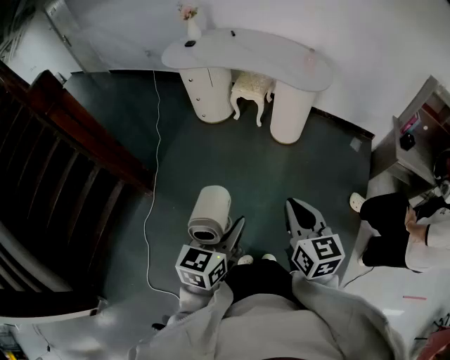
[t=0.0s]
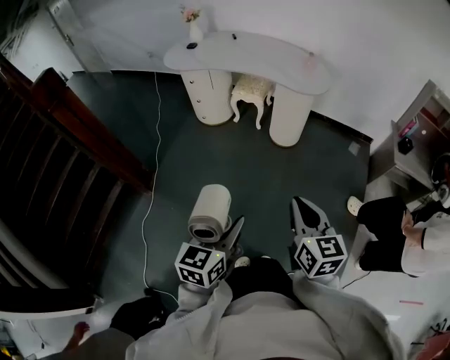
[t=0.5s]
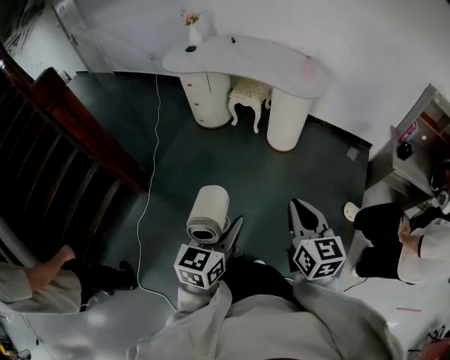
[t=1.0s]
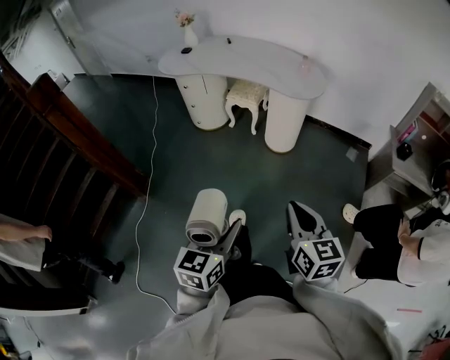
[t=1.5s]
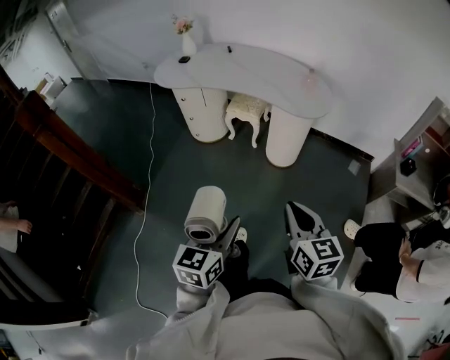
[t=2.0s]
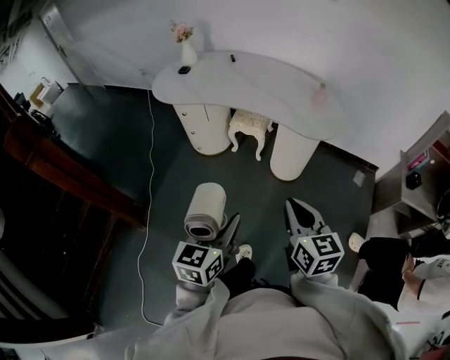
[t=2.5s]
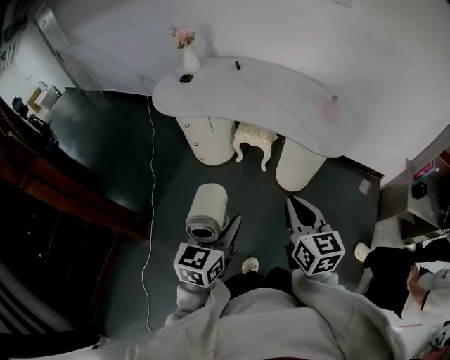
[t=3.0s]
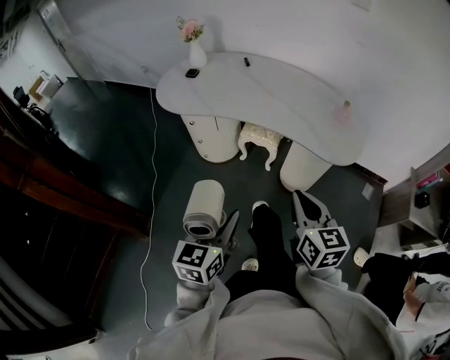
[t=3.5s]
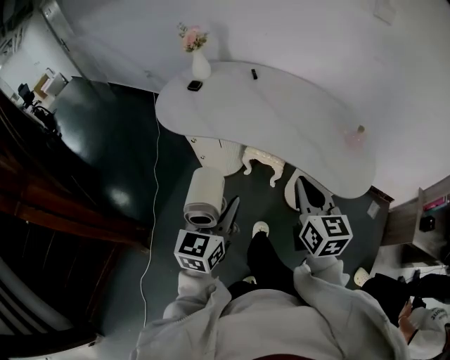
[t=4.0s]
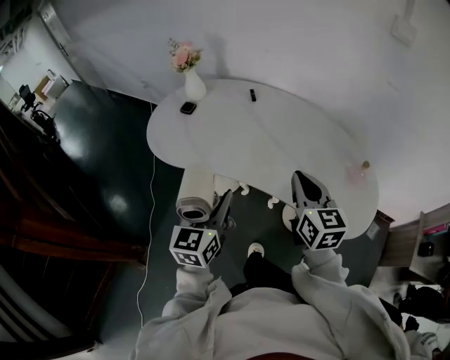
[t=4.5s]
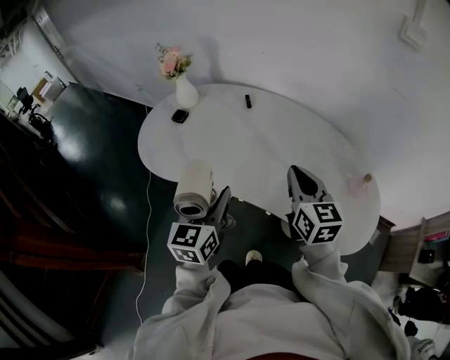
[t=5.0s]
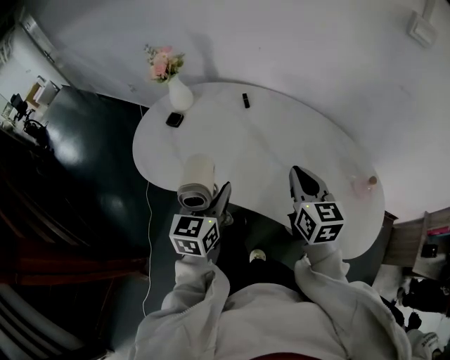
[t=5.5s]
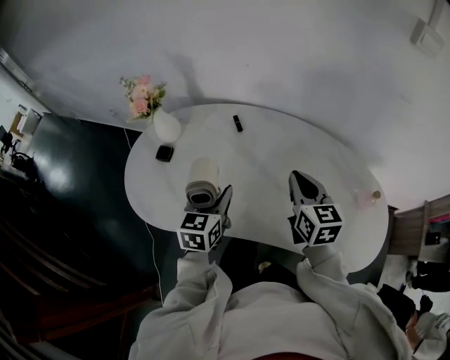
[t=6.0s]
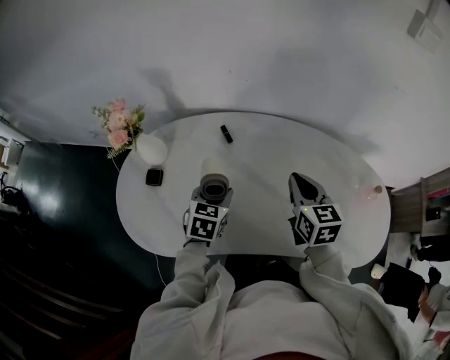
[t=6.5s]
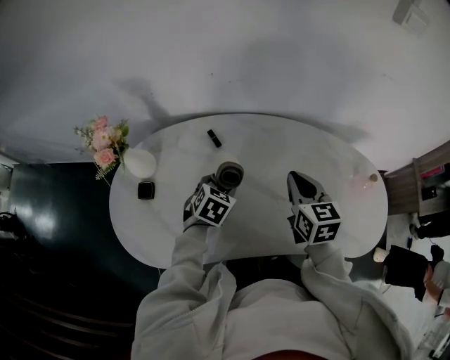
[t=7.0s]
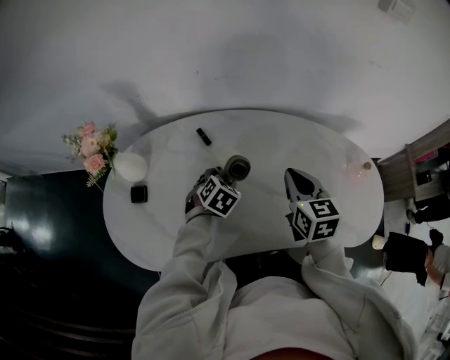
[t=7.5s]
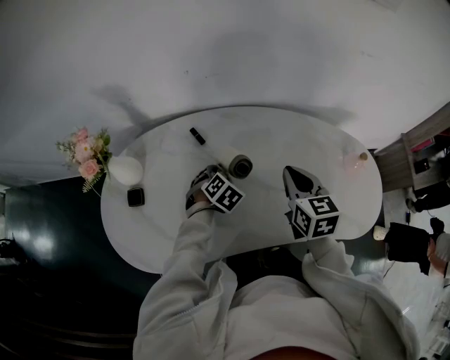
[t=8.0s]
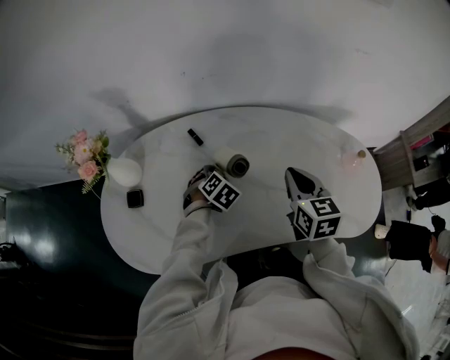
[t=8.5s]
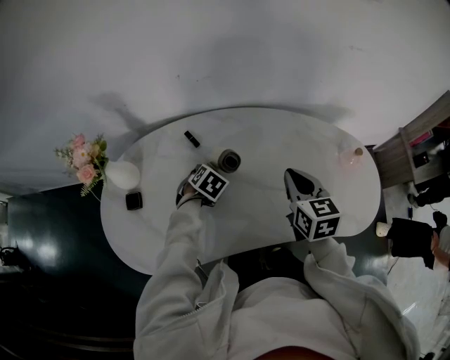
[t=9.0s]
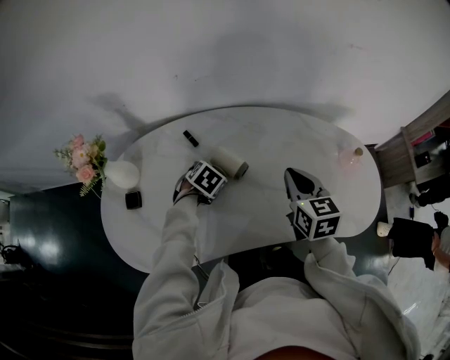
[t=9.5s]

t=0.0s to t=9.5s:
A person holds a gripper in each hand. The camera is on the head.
t=0.0s to t=2.0s: Both grippers travel together forward, some 15 cm.
t=2.0s to t=4.0s: The two grippers travel together, forward, about 50 cm.
t=4.0s to t=5.5s: Both grippers move forward, approximately 30 cm.
t=5.5s to t=7.5s: The left gripper moves about 30 cm, and tips its fingers downward by roughly 40 degrees, while the right gripper ends up some 15 cm from where it was, and rotates some 30 degrees.
t=7.5s to t=9.5s: The grippers stay close to where they were, moving slightly.

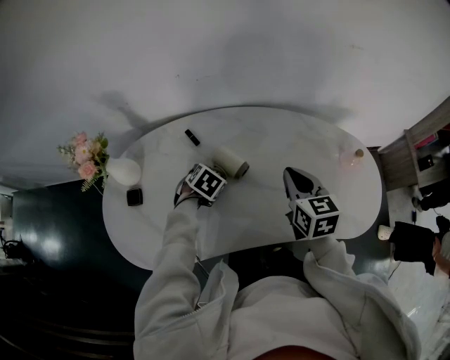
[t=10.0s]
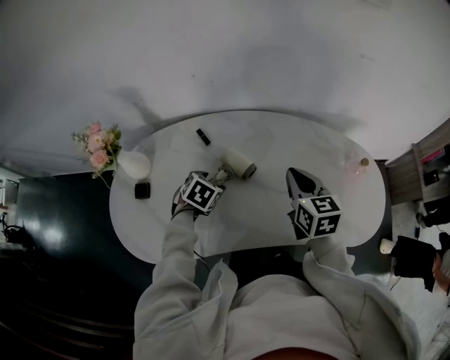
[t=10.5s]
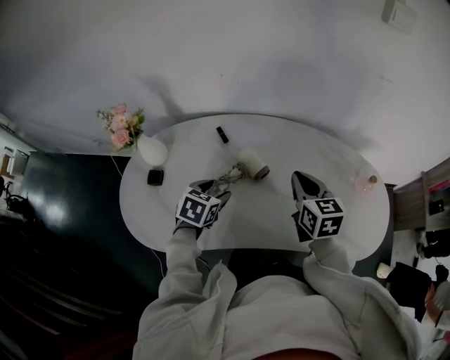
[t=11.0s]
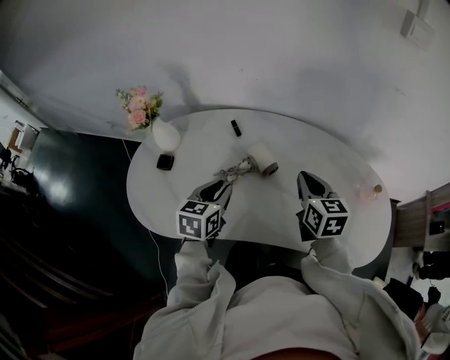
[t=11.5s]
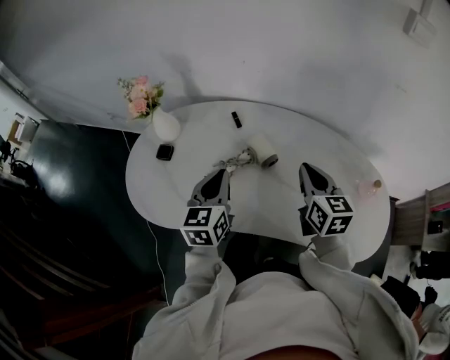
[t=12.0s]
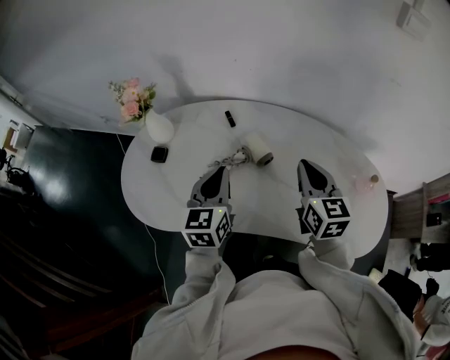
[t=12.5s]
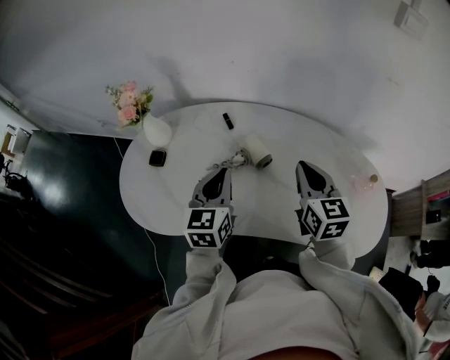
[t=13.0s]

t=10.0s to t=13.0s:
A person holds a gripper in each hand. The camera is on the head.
t=10.0s to t=11.5s: The left gripper is displaced upward and backward by some 20 cm, tilts its fingers roughly 40 degrees upward, and closes.
t=11.5s to t=13.0s: The left gripper travels upward by some 5 cm.

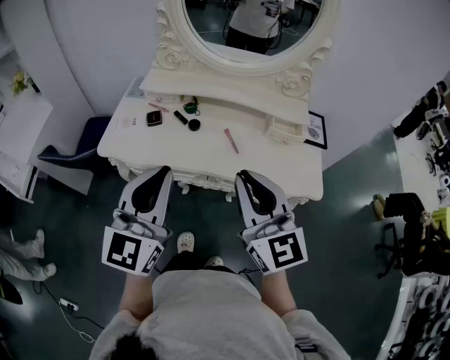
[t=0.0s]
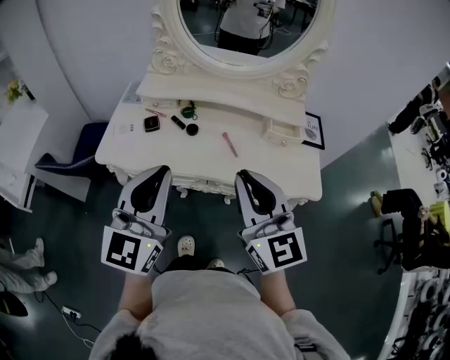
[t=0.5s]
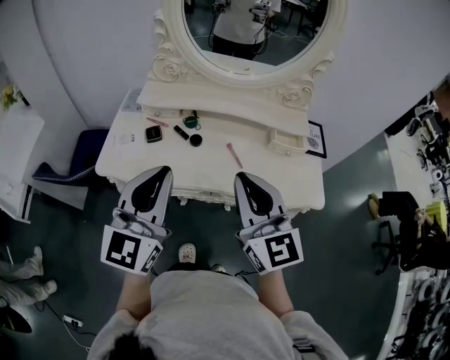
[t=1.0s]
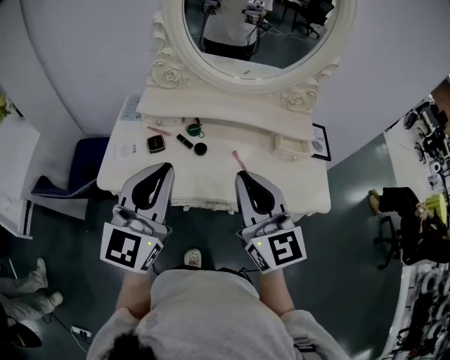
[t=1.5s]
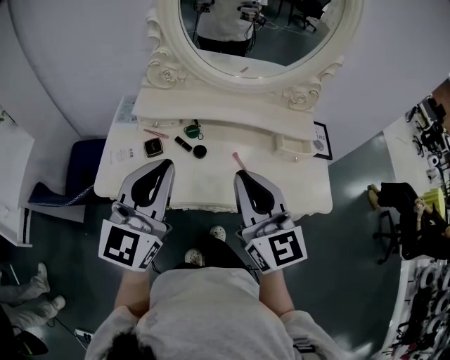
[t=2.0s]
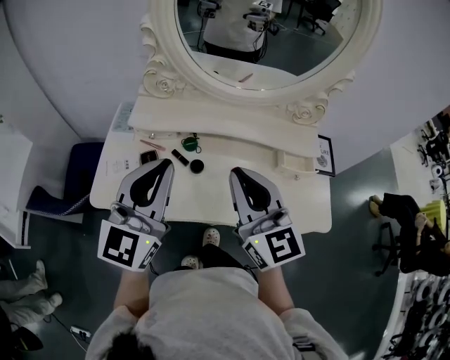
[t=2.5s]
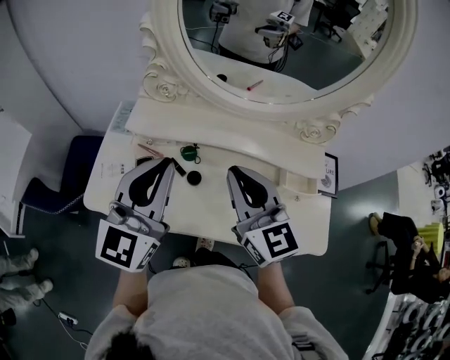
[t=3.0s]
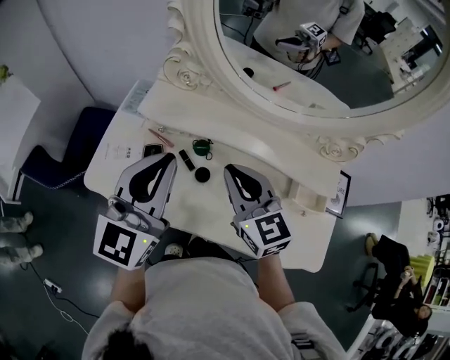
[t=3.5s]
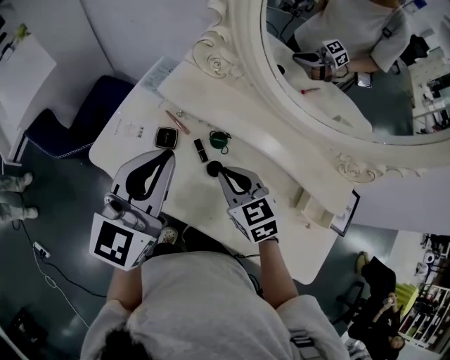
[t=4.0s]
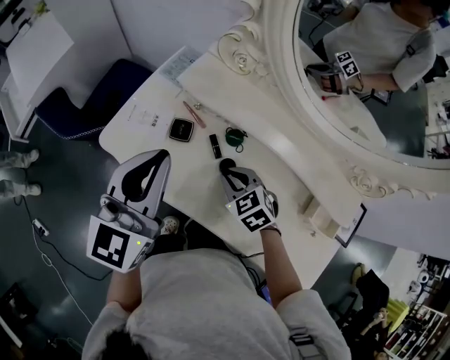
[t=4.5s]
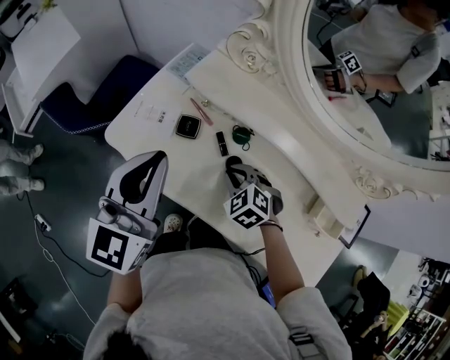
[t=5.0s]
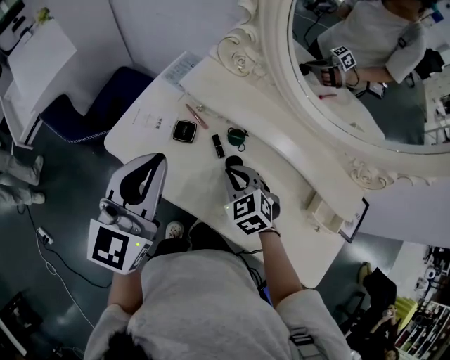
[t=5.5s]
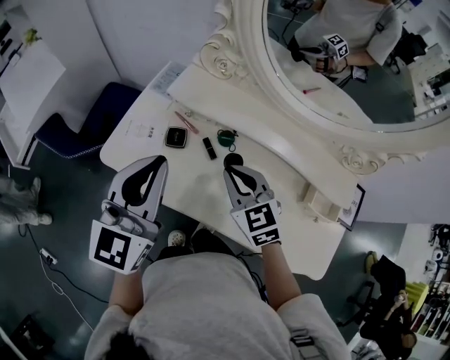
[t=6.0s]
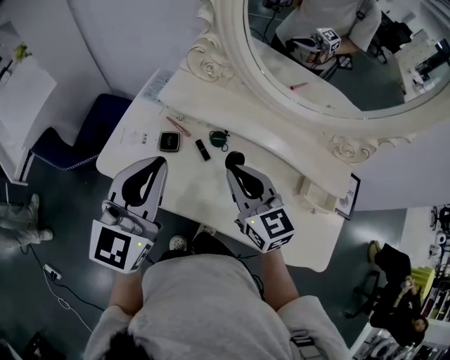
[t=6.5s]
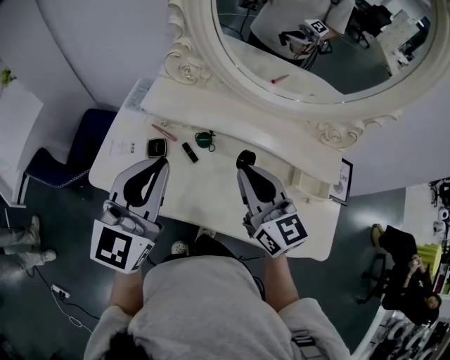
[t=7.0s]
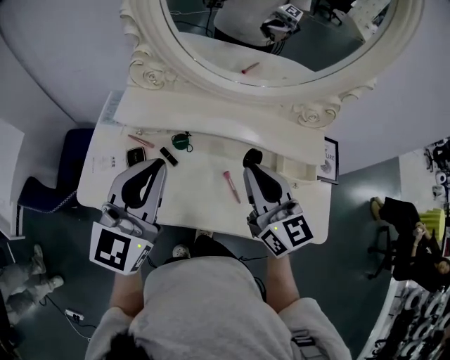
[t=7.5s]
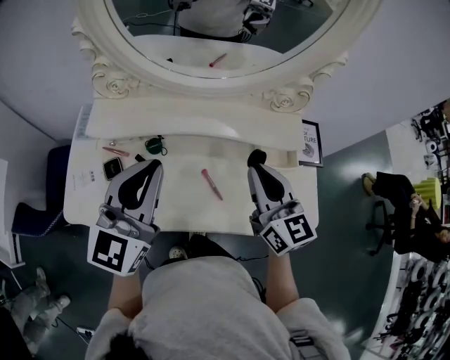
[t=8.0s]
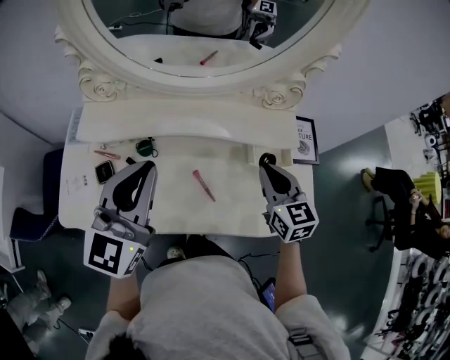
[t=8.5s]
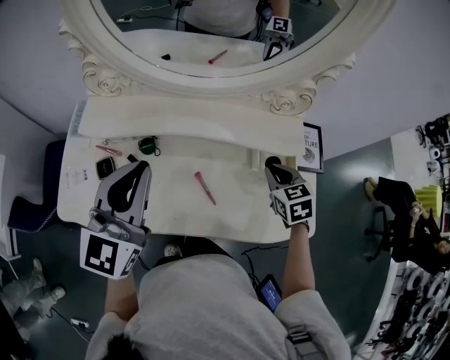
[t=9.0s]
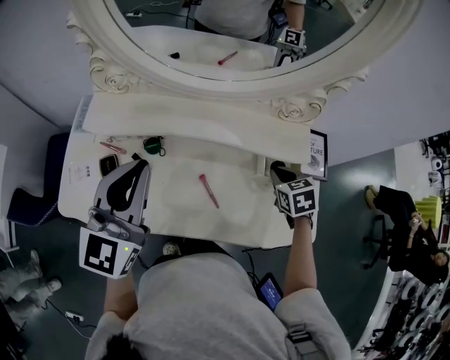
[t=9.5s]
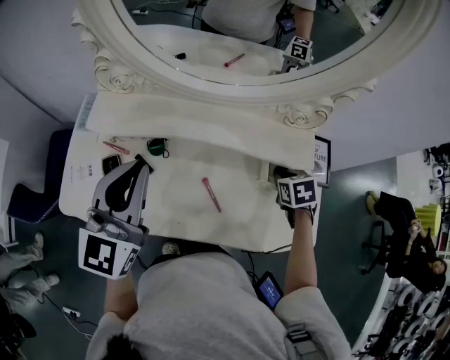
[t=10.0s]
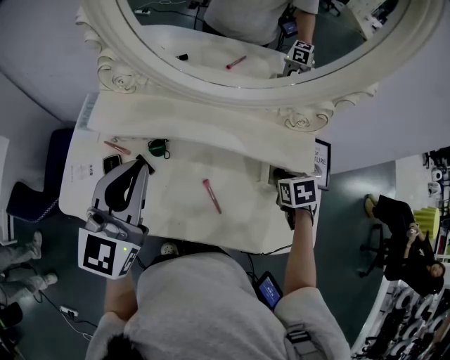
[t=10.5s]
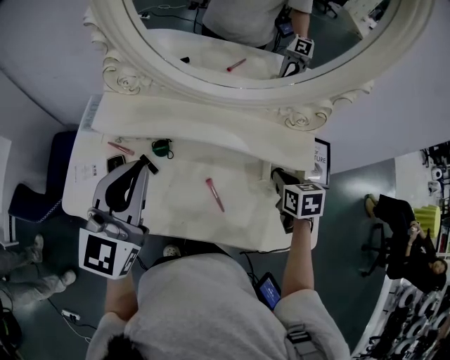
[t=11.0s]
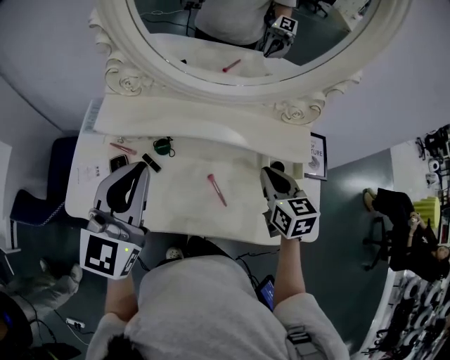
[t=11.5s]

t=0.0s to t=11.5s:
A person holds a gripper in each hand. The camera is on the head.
t=0.0s to t=2.0s: The grippers both shift forward and to the left by approximately 15 cm.
t=2.0s to t=4.0s: The right gripper is displaced downward by roughly 20 cm, and angles its fingers downward, by roughly 40 degrees; the left gripper changes place by about 15 cm, and changes its angle by about 20 degrees.
t=4.0s to t=6.0s: The right gripper travels downward and back again, approximately 10 cm each way.
t=6.0s to t=7.5s: The left gripper goes roughly 10 cm to the right, and turns by roughly 20 degrees. The right gripper goes some 20 cm to the right and upward, and turns by roughly 40 degrees.
t=7.5s to t=9.5s: The right gripper goes approximately 25 cm to the right and downward, and angles its fingers downward, by some 50 degrees. Meanwhile the left gripper ends up approximately 5 cm from where it was.
t=9.5s to t=11.5s: The right gripper heads upward and to the left, covering approximately 10 cm, and turns by about 30 degrees.

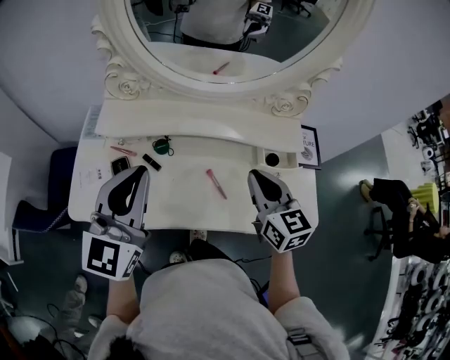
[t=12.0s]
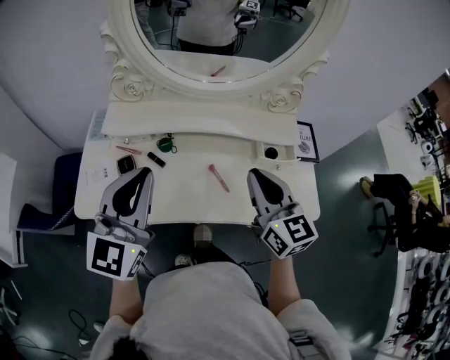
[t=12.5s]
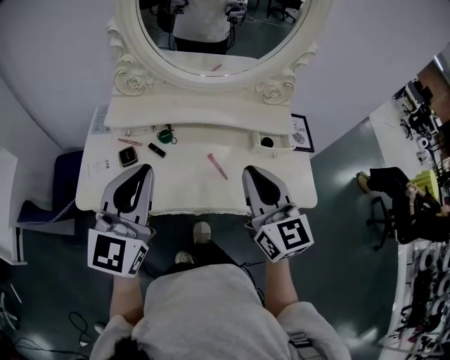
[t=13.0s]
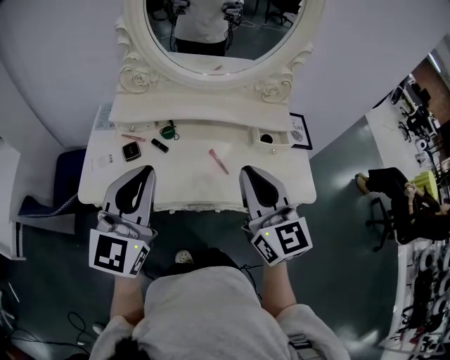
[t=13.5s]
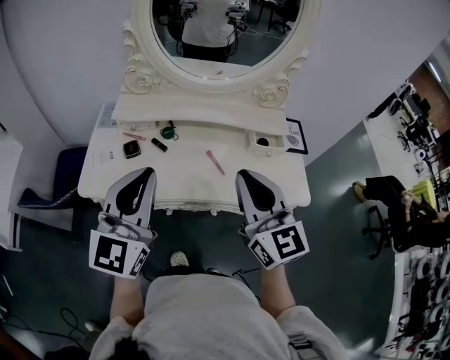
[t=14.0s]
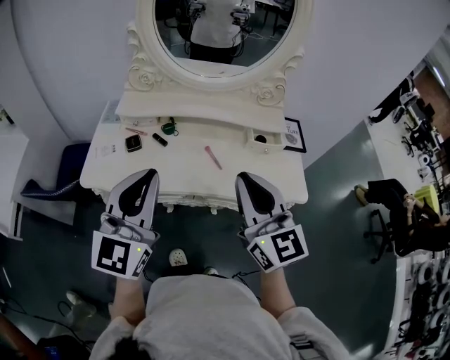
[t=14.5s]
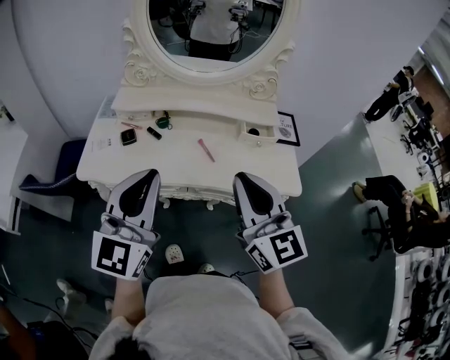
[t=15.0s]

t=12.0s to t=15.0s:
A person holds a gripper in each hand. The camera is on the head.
t=12.0s to t=13.5s: The right gripper moves backward, upward and to the left, roughly 20 cm, while the left gripper is displaced backward by about 10 cm.
t=13.5s to t=15.0s: The right gripper heads backward, covering approximately 10 cm; the left gripper shifts about 10 cm backward and to the right.
